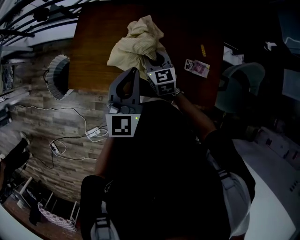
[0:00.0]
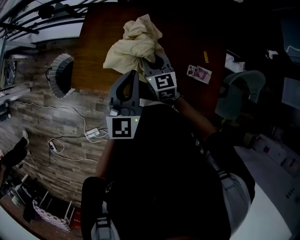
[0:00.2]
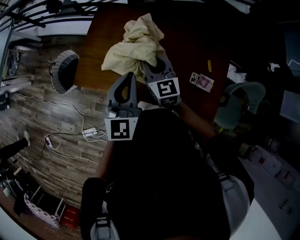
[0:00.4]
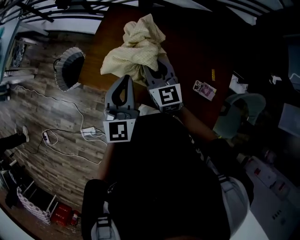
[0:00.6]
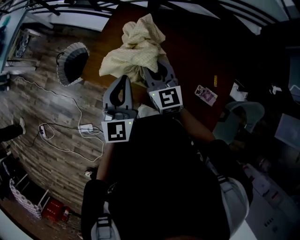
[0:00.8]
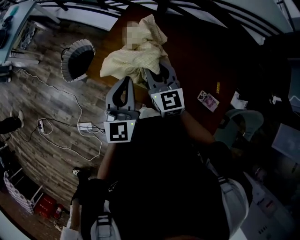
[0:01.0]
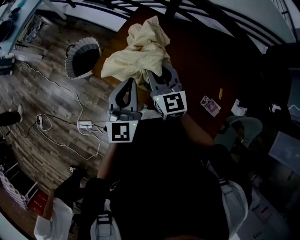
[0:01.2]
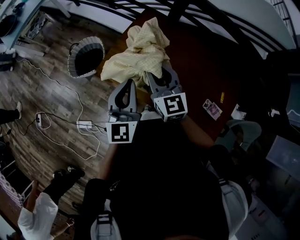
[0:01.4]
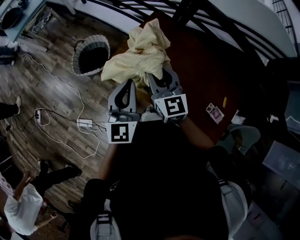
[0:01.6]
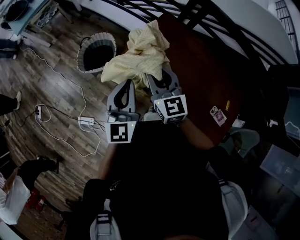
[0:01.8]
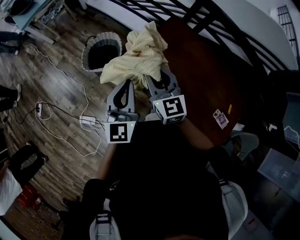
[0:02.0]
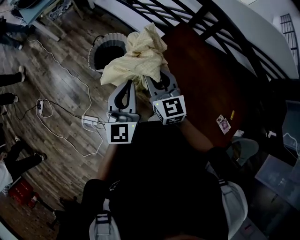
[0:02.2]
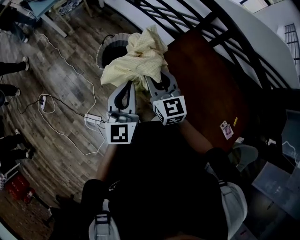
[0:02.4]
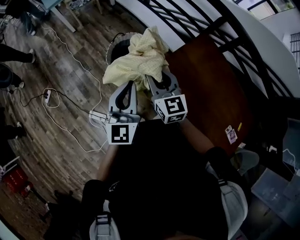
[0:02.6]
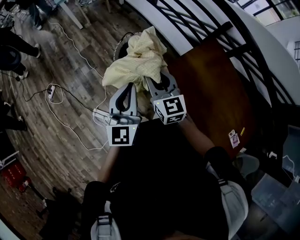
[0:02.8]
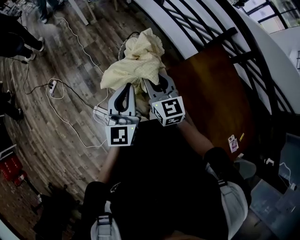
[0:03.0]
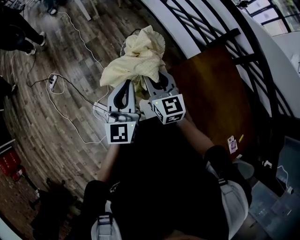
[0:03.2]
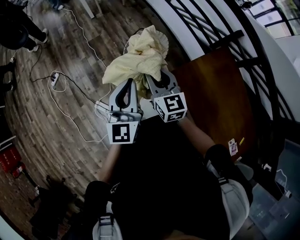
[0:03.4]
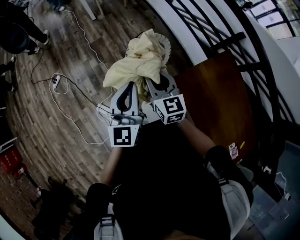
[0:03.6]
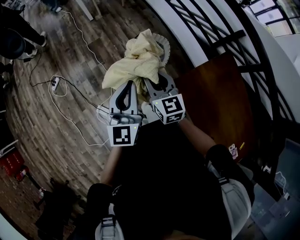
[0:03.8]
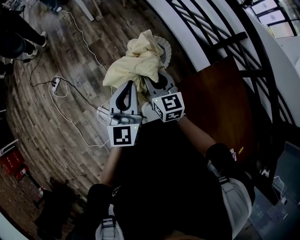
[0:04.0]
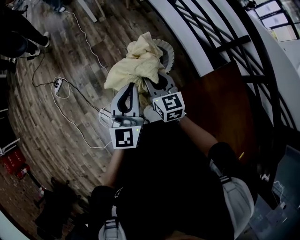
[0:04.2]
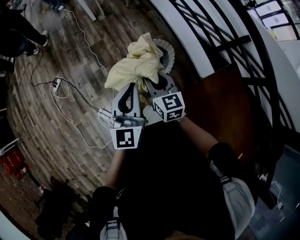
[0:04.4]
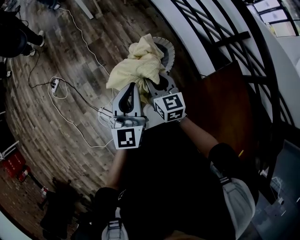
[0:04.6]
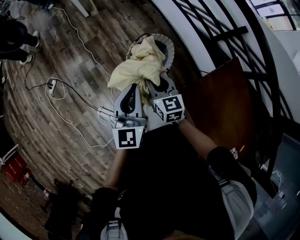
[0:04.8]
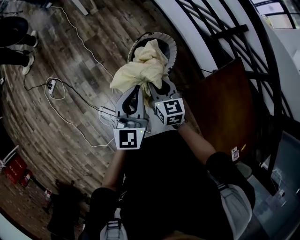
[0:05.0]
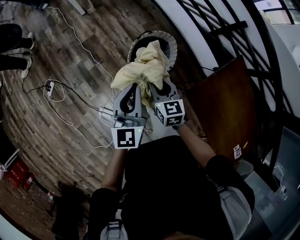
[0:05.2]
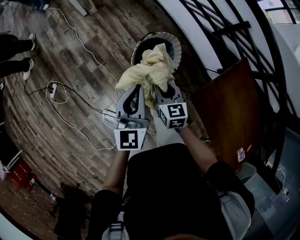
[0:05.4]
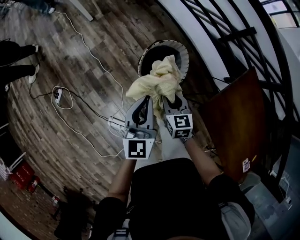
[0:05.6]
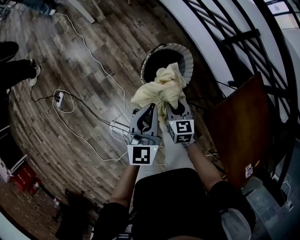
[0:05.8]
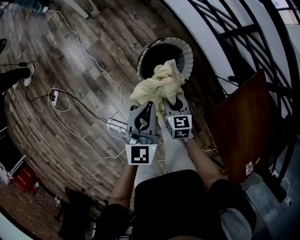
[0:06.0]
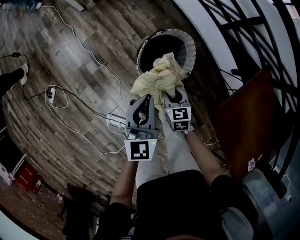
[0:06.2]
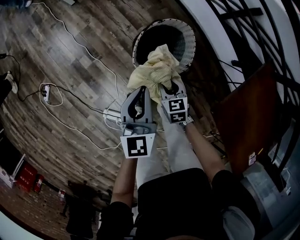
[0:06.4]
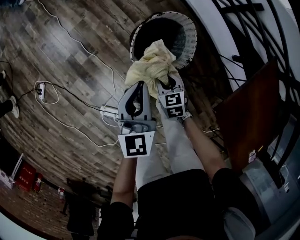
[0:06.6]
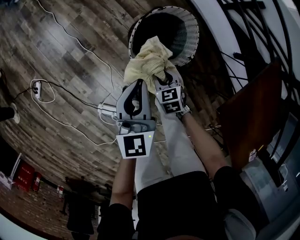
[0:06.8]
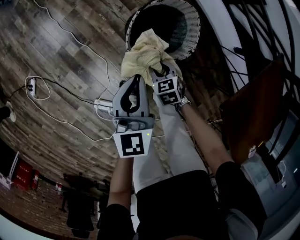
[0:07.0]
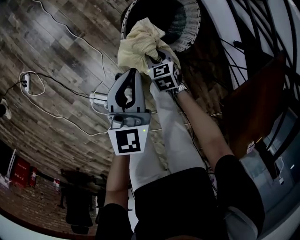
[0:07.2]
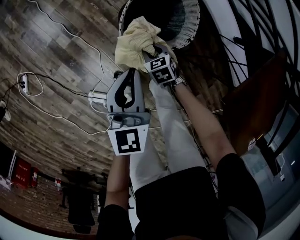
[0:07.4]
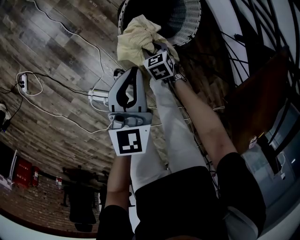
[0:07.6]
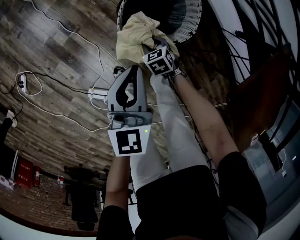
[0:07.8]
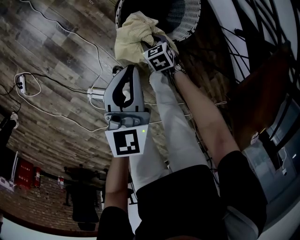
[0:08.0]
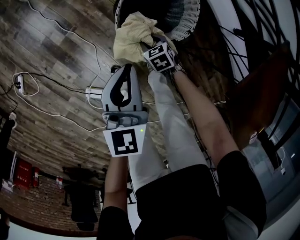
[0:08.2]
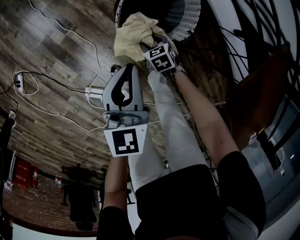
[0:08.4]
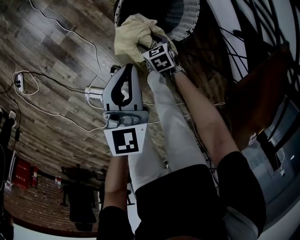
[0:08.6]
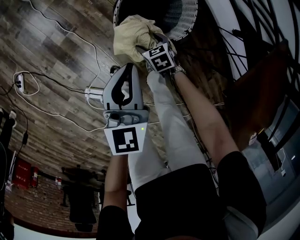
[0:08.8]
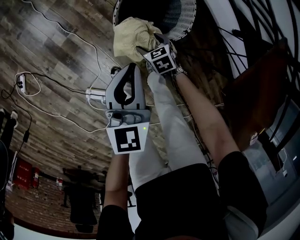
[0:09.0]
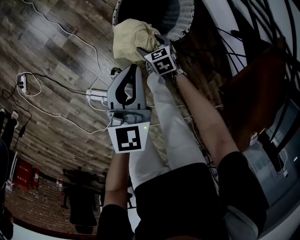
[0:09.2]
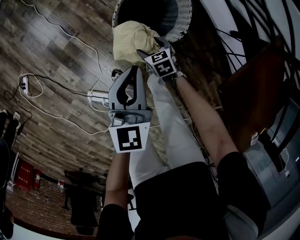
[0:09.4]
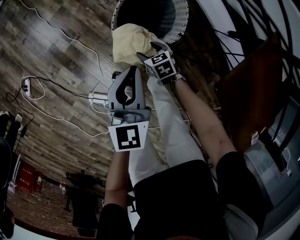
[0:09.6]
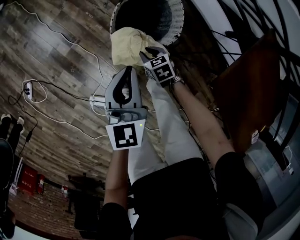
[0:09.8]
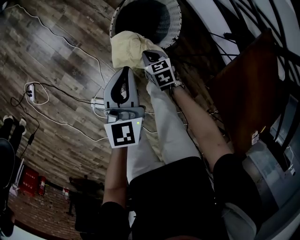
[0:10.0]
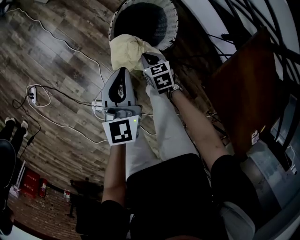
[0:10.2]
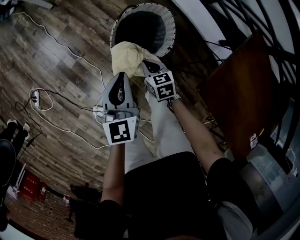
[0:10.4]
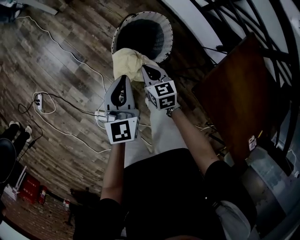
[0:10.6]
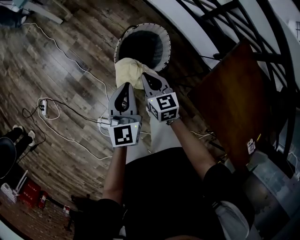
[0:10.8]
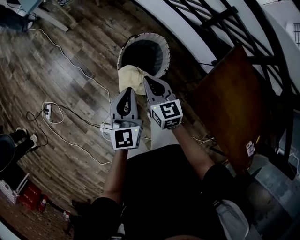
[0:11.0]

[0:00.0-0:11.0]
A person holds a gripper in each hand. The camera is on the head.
0:00.0 to 0:01.6: The right gripper ends up approximately 30 cm from where it was, and changes its angle by roughly 30 degrees. The left gripper shifts by approximately 25 cm, and turns by roughly 30 degrees.
0:01.6 to 0:03.2: The grippers both shift to the left by approximately 35 cm. The left gripper turns by approximately 20 degrees. The right gripper swivels about 20 degrees.
0:03.2 to 0:04.8: The right gripper shifts roughly 20 cm forward and downward. The left gripper moves forward, approximately 20 cm.
0:04.8 to 0:06.2: The right gripper is displaced downward by some 25 cm, while the left gripper moves downward and forward, some 20 cm.
0:06.2 to 0:07.8: The left gripper shifts some 15 cm downward. Meanwhile the right gripper goes about 25 cm downward, and changes its angle by some 30 degrees.
0:07.8 to 0:09.4: The right gripper opens up.
0:09.4 to 0:11.0: The left gripper shifts roughly 15 cm upward. Meanwhile the right gripper heads upward, covering some 35 cm, tilts its fingers some 40 degrees upward, and closes.

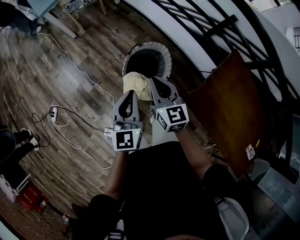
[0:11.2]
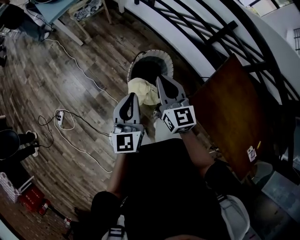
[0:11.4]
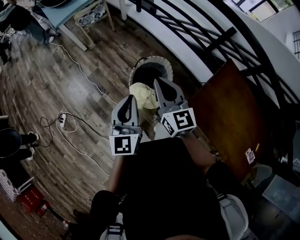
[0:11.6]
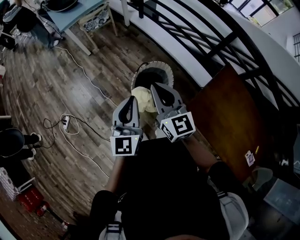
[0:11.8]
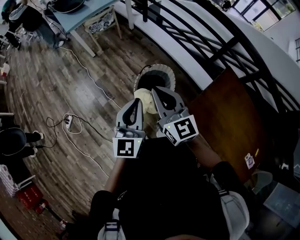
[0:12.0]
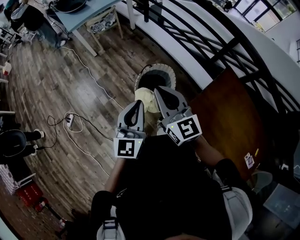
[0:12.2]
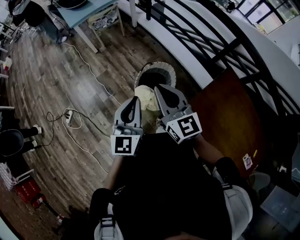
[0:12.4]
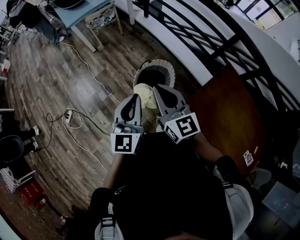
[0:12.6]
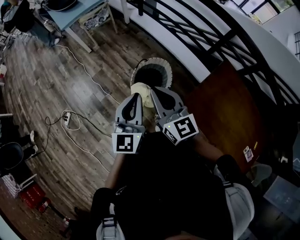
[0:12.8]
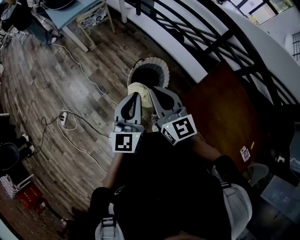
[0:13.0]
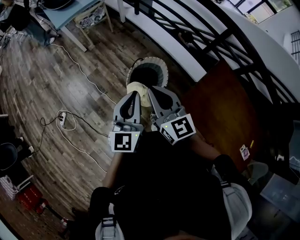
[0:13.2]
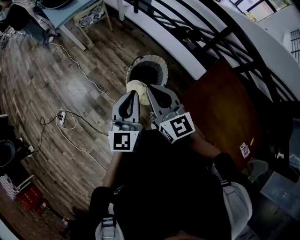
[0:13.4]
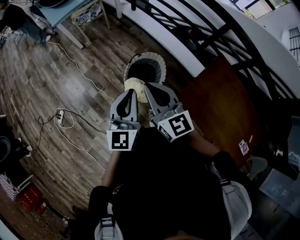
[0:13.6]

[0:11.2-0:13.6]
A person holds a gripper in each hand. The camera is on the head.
0:11.2 to 0:12.4: Both grippers travel together upward, roughly 20 cm.
0:12.4 to 0:13.6: There are only small adjustments of the grippers.

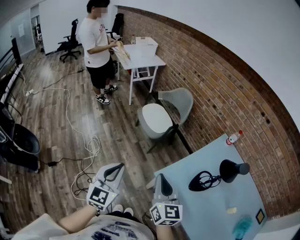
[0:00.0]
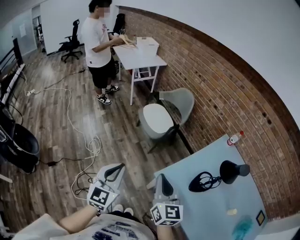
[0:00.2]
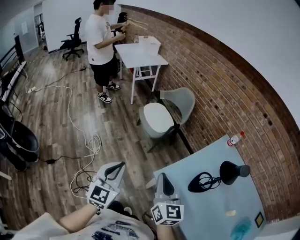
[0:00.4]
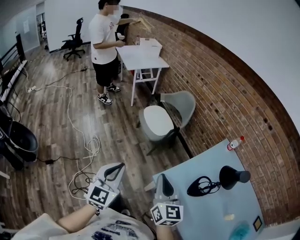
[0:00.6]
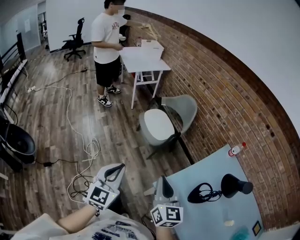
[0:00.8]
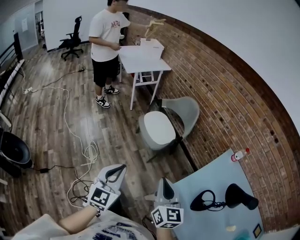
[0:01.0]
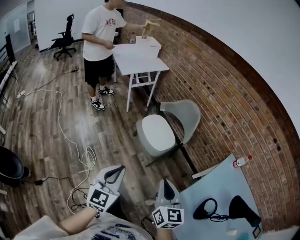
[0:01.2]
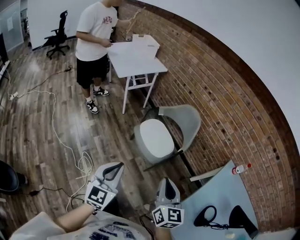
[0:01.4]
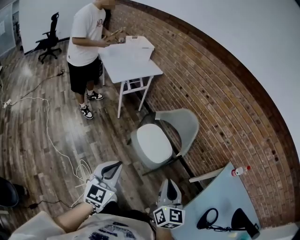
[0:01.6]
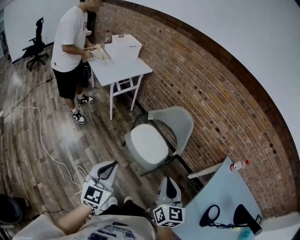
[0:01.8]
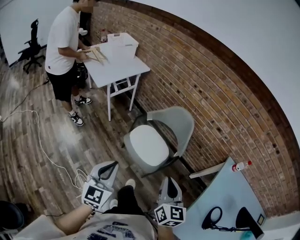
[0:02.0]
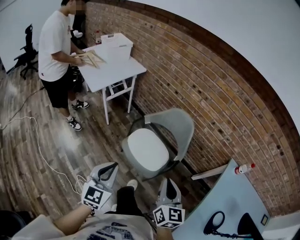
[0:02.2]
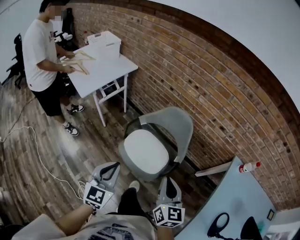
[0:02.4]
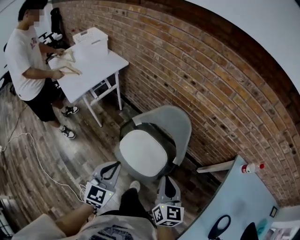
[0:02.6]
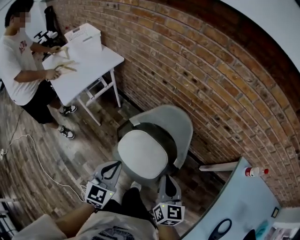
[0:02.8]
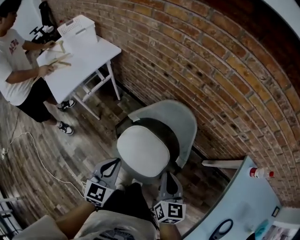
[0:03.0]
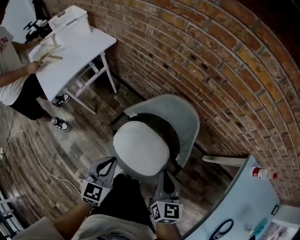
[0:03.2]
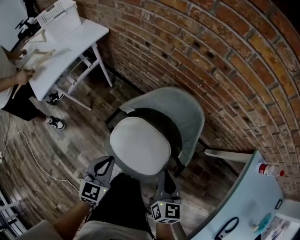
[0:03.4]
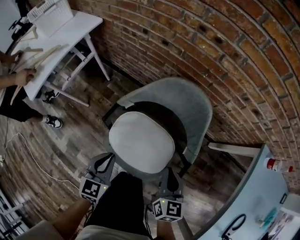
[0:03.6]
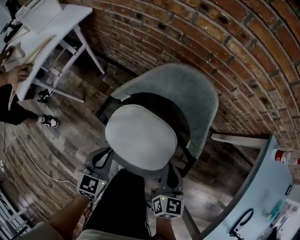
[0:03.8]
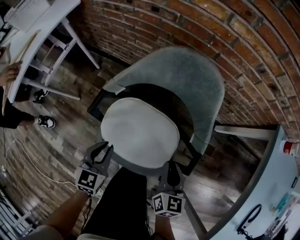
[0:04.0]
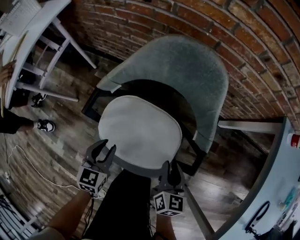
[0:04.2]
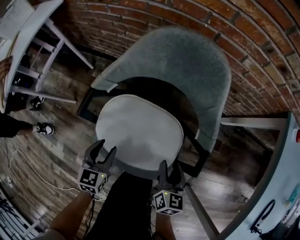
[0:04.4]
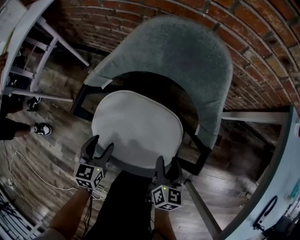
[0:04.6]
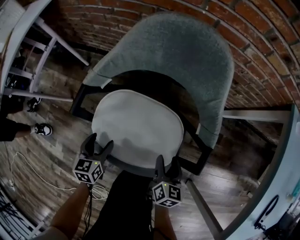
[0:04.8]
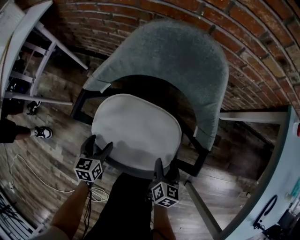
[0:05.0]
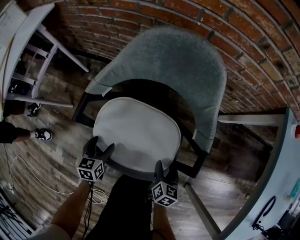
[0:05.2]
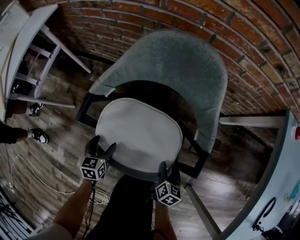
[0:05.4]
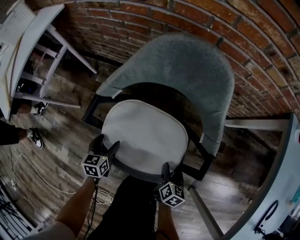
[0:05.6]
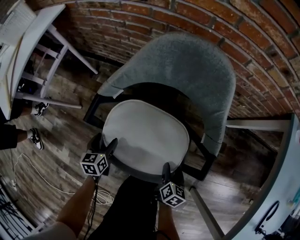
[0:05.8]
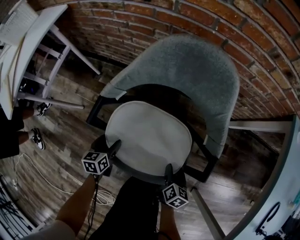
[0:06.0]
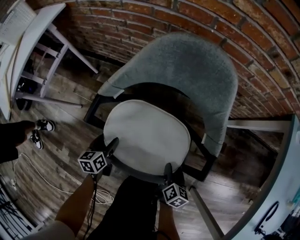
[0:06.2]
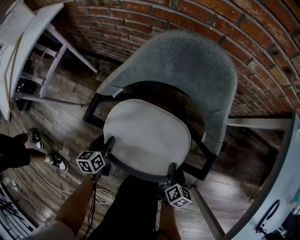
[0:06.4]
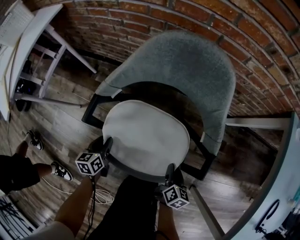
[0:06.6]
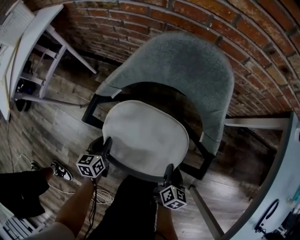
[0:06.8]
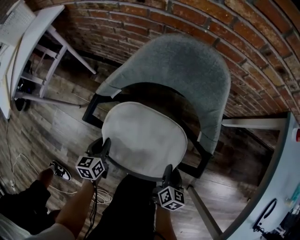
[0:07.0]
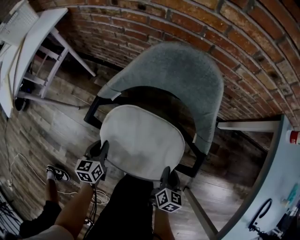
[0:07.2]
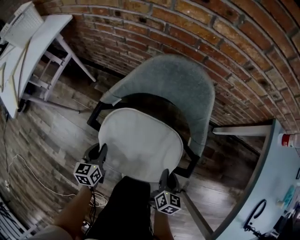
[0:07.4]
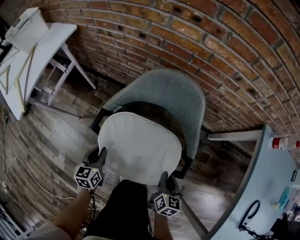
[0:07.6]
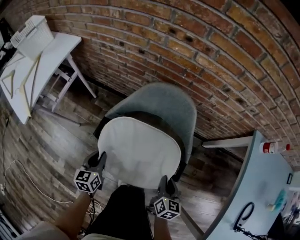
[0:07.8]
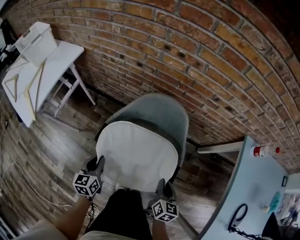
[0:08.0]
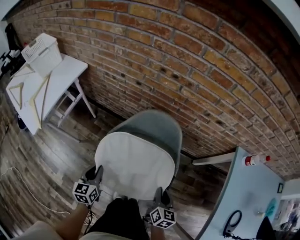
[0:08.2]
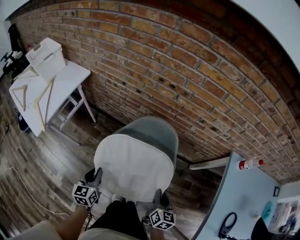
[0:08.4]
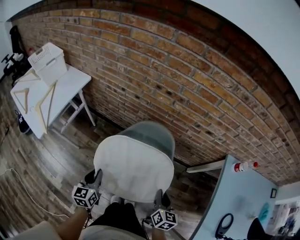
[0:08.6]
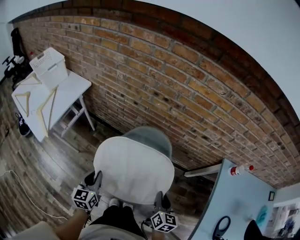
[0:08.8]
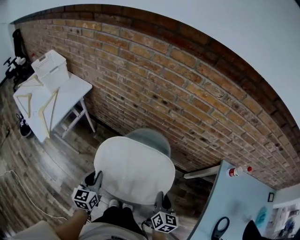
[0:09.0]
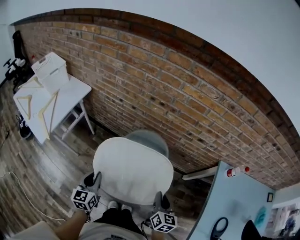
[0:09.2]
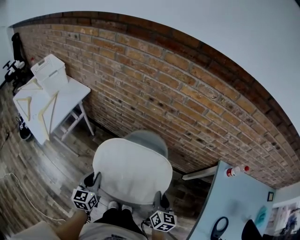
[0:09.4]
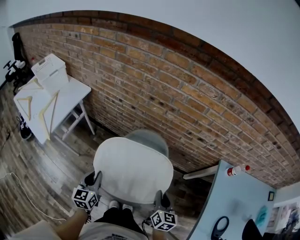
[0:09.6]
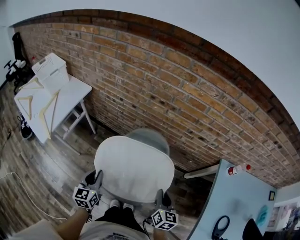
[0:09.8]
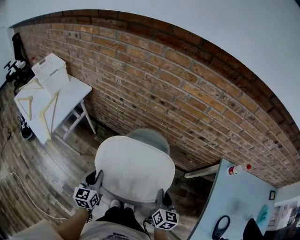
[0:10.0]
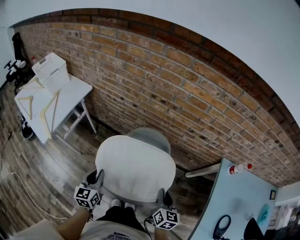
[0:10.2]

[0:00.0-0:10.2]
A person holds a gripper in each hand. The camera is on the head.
0:00.0 to 0:01.4: The left gripper shifts some 35 cm forward and to the left, while the right gripper travels forward by about 30 cm.
0:01.4 to 0:03.0: The two grippers travel together, forward, about 50 cm. The right gripper changes its angle by approximately 20 degrees. The left gripper changes its angle by roughly 20 degrees.
0:03.0 to 0:04.4: The grippers both shift downward by roughly 35 cm. The right gripper rotates approximately 30 degrees, and opens. The left gripper opens.
0:04.4 to 0:05.8: The right gripper heads downward, covering some 10 cm; the left gripper heads downward and to the left, covering roughly 10 cm, and opens.
0:05.8 to 0:07.2: The two grippers go approximately 5 cm upward. The left gripper closes its fingers, while the right gripper closes.
0:07.2 to 0:08.8: Both grippers move upward, about 35 cm.
0:08.8 to 0:10.2: The grippers stay close to where they were, moving slightly.
